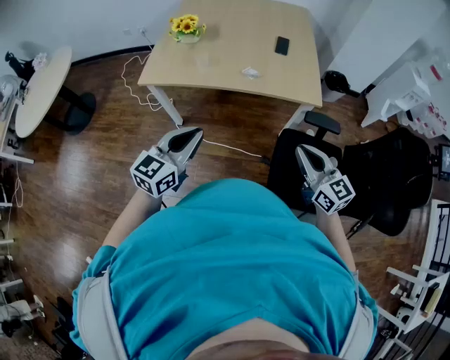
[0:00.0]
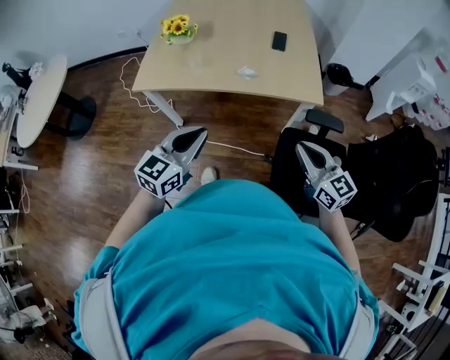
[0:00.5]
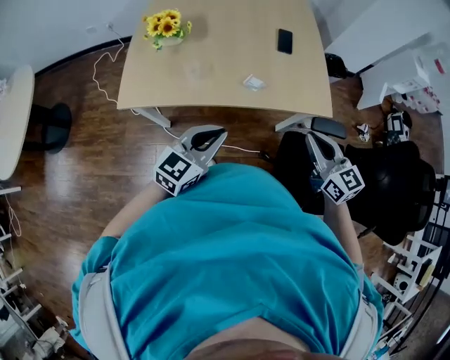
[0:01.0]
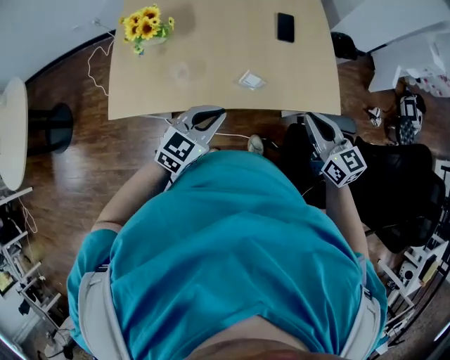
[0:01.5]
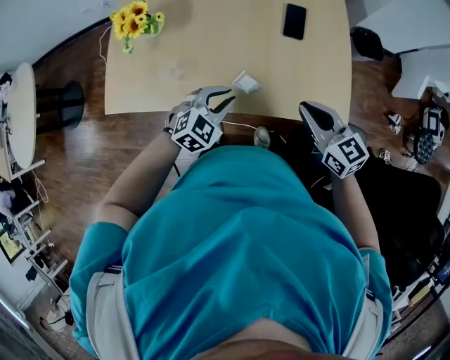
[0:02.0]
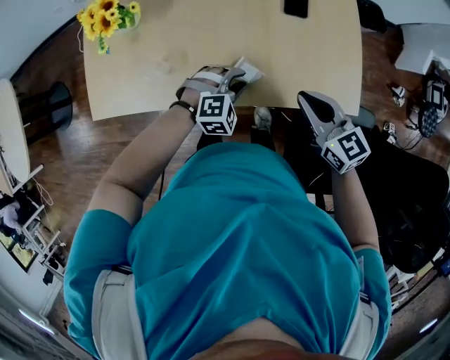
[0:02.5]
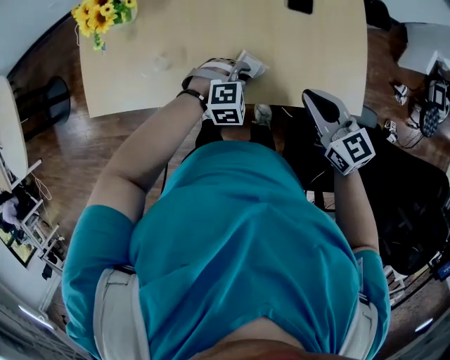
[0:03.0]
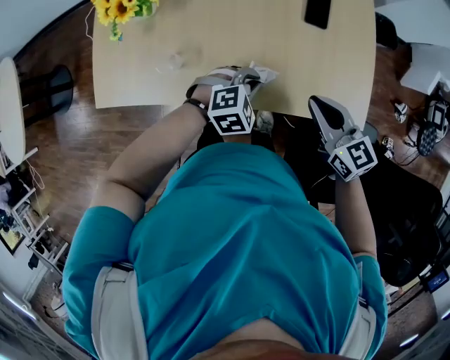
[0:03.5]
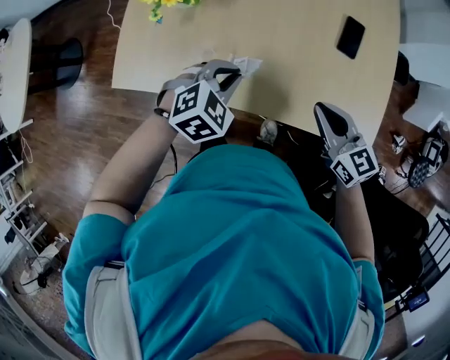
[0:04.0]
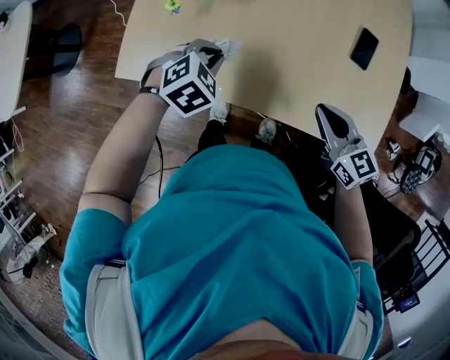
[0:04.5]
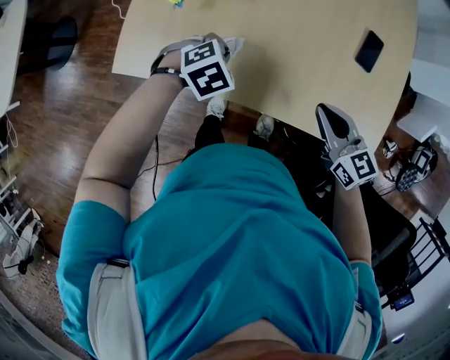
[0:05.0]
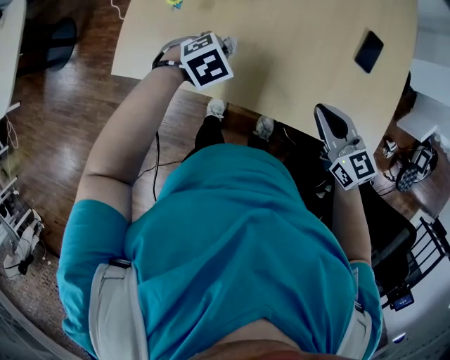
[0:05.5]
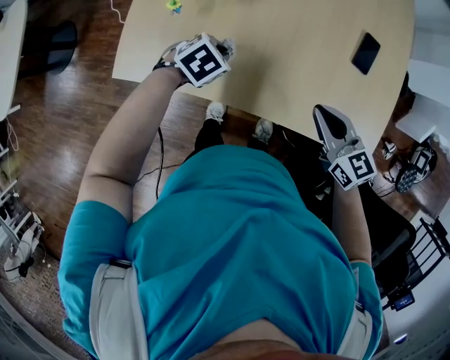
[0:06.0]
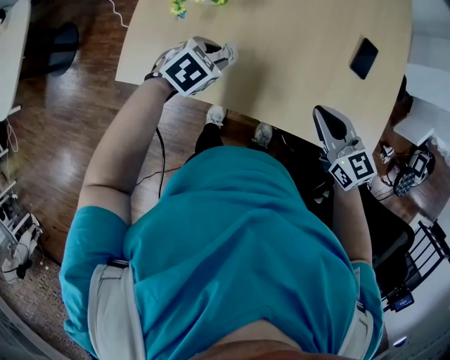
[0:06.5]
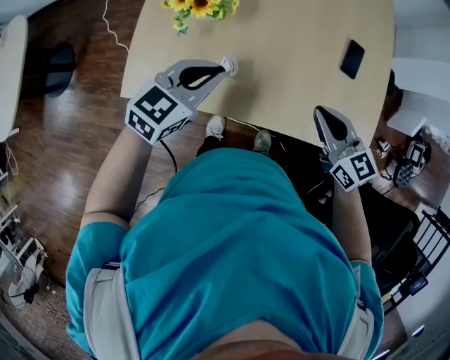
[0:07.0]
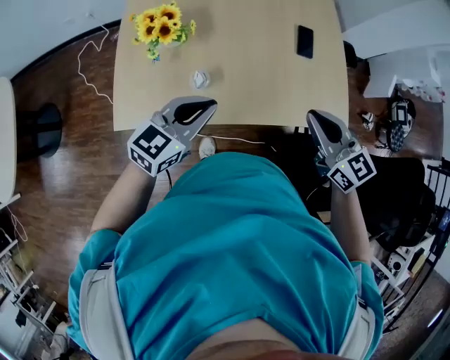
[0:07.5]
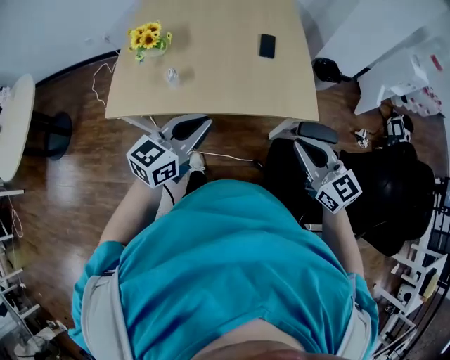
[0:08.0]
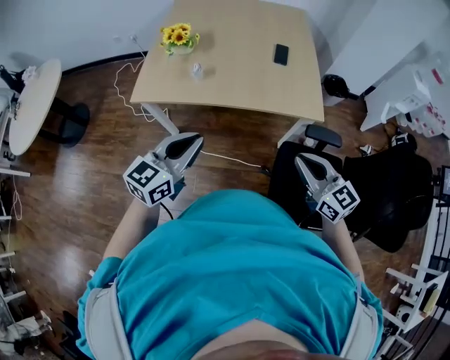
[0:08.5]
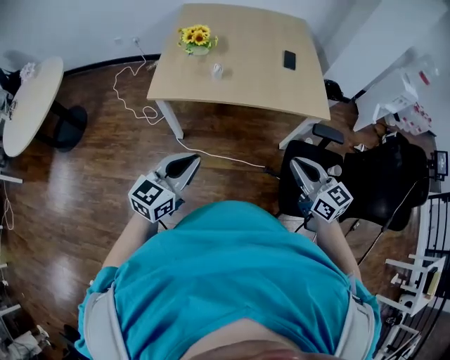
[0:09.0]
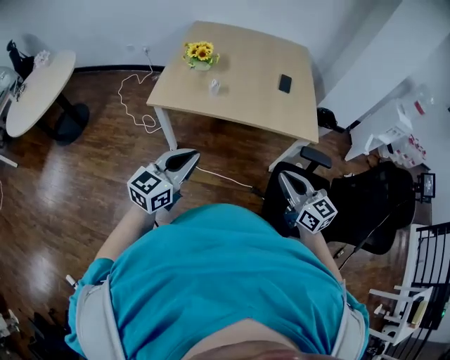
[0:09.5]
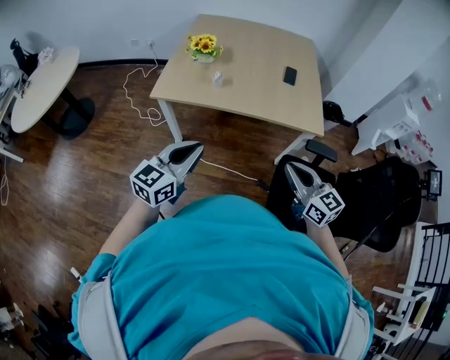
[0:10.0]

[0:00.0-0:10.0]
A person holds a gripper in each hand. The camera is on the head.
0:00.0 to 0:02.0: The right gripper shifts about 40 cm forward. The left gripper travels forward and downward by approximately 50 cm, and points its fingers approximately 30 degrees further downward.
0:02.0 to 0:04.0: The left gripper travels to the left and forward by some 10 cm, and reaches about 15 cm downward, then returns; the right gripper goes roughly 10 cm to the left.
0:04.0 to 0:06.0: The left gripper travels to the left, downward and forward by roughly 15 cm, and changes its angle by roughly 30 degrees. The right gripper travels to the left by some 5 cm.
0:06.0 to 0:08.0: The right gripper travels backward, to the right and upward by about 35 cm, and rotates approximately 20 degrees. Meanwhile the left gripper shifts approximately 40 cm upward, backward and to the right, and tips its fingers upward by about 60 degrees.
0:08.0 to 0:10.0: Both grippers travel together backward and to the left, approximately 25 cm.

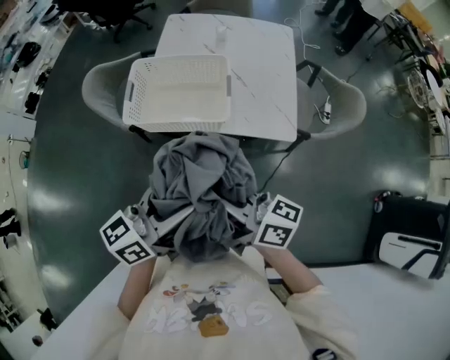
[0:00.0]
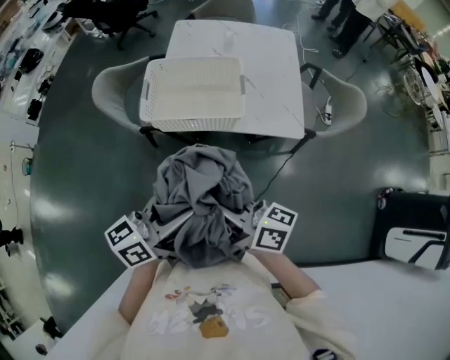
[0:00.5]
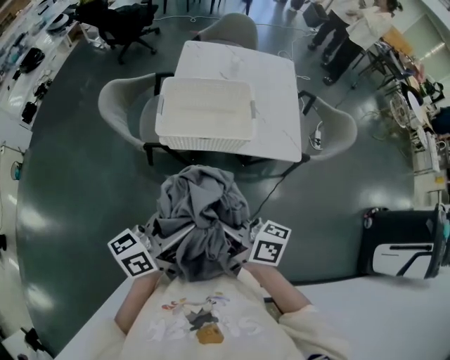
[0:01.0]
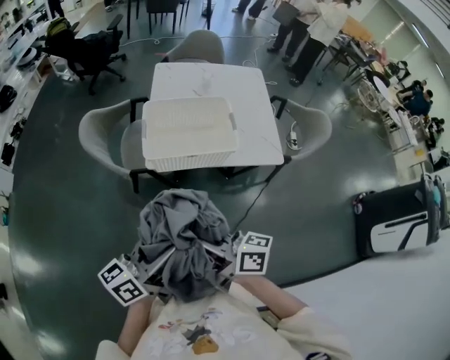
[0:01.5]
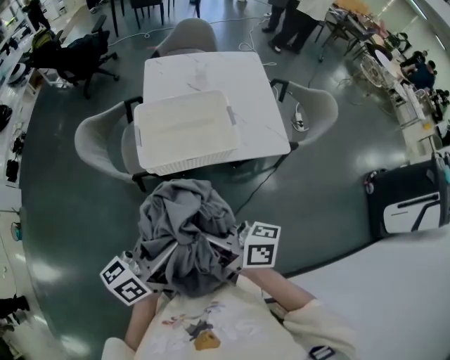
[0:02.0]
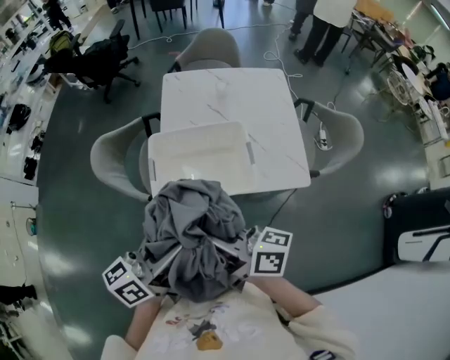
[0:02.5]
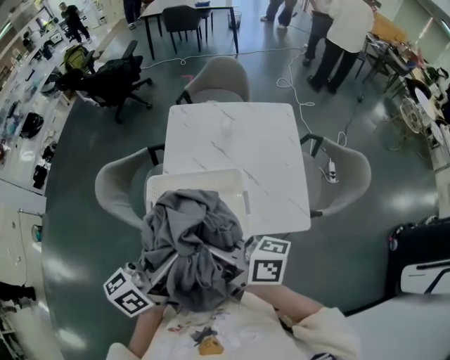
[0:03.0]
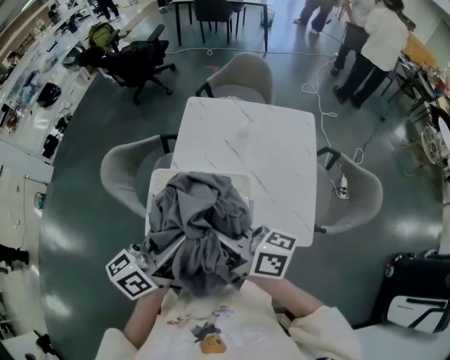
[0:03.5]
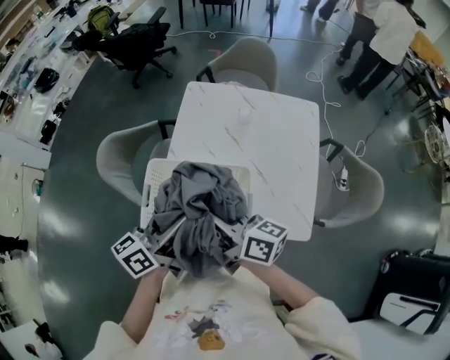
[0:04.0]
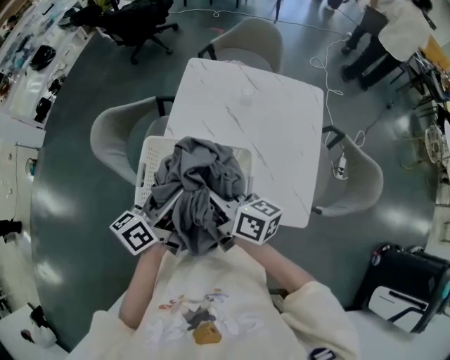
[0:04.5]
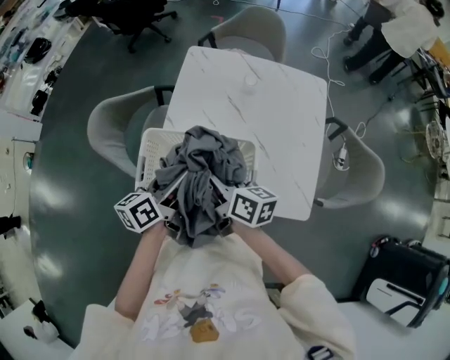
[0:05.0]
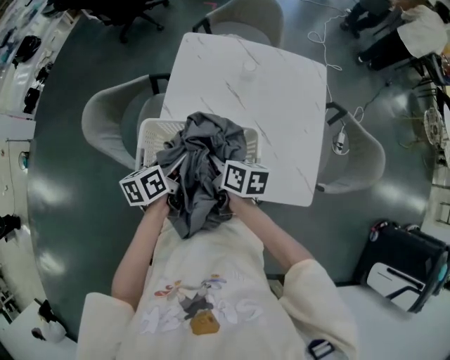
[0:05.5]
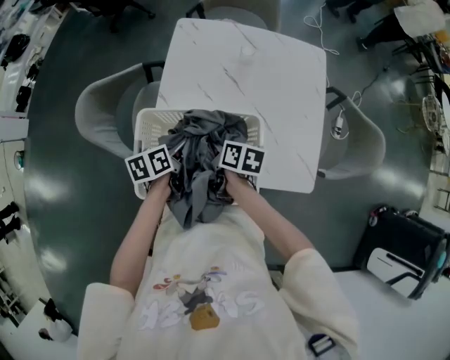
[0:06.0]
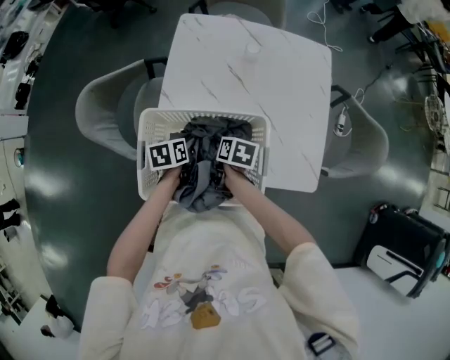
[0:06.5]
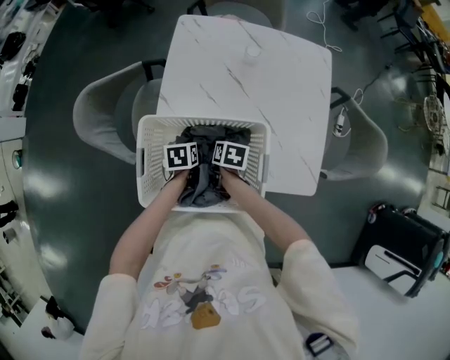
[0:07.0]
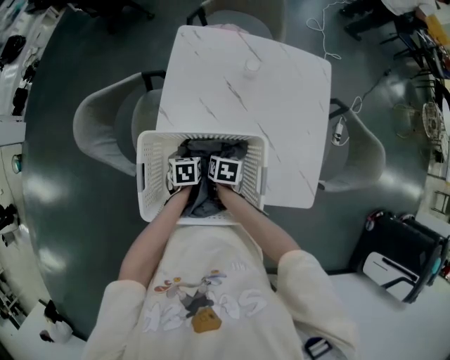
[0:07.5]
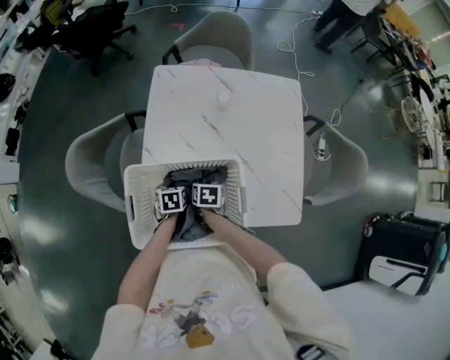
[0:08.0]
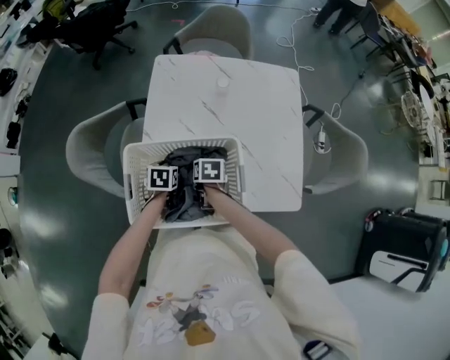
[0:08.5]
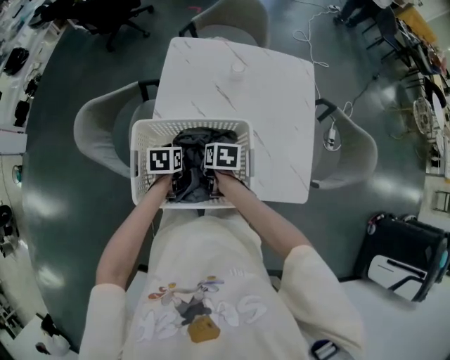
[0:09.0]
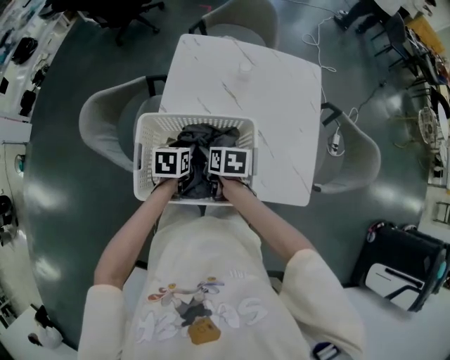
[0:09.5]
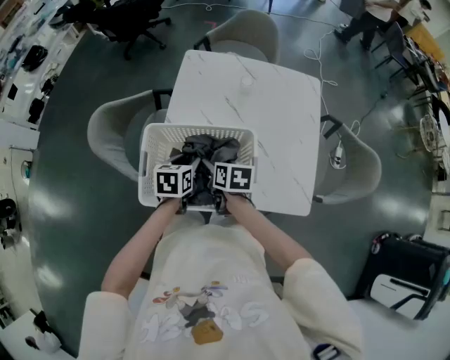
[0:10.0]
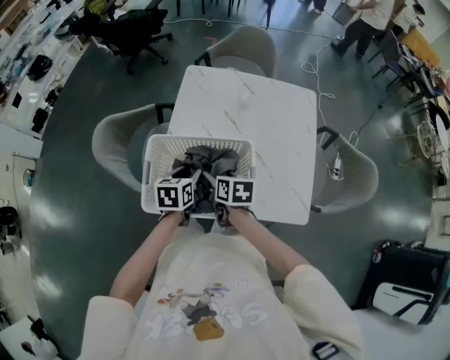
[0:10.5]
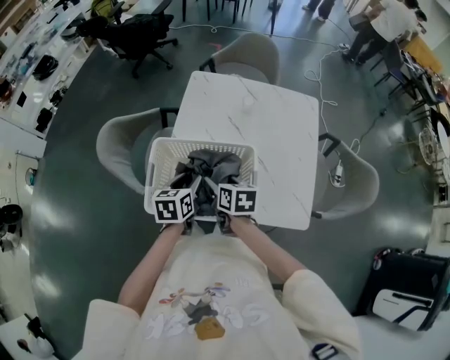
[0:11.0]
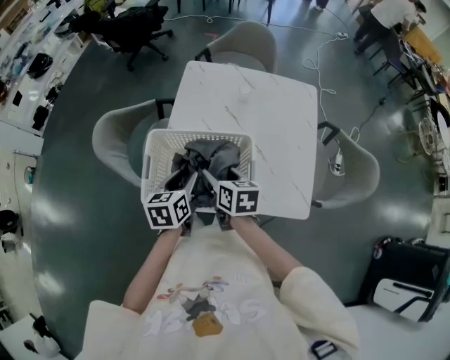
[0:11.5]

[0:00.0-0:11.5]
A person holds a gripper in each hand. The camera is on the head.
0:00.0 to 0:02.0: The grippers both shift to the left by about 20 cm.
0:02.0 to 0:04.0: Both grippers travel together forward and to the right, some 35 cm.
0:04.0 to 0:06.0: The grippers both shift downward by approximately 25 cm. The left gripper points its fingers about 40 degrees further downward, while the right gripper angles its fingers downward, by some 40 degrees.
0:06.0 to 0:07.5: Both grippers travel together downward, roughly 15 cm. The right gripper swivels about 30 degrees. The left gripper changes its angle by approximately 40 degrees, and closes.
0:07.5 to 0:09.5: The two grippers go some 10 cm upward.
0:09.5 to 0:11.5: The grippers both shift upward and backward by about 10 cm. The left gripper turns by approximately 20 degrees.

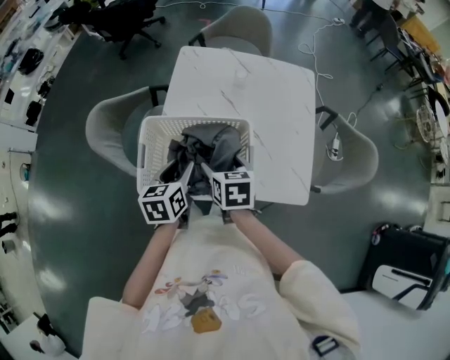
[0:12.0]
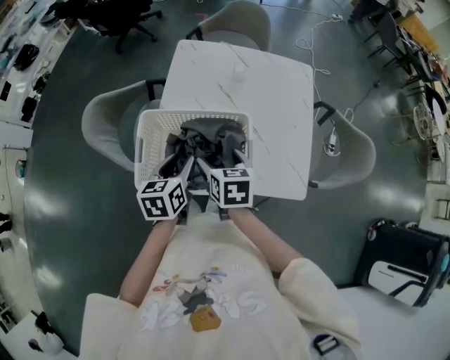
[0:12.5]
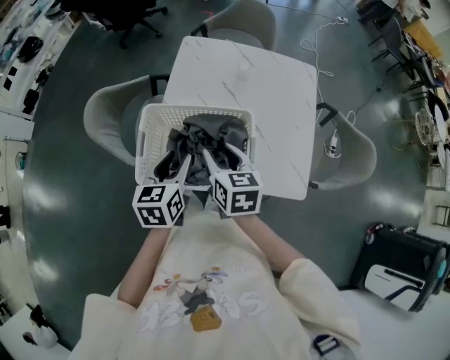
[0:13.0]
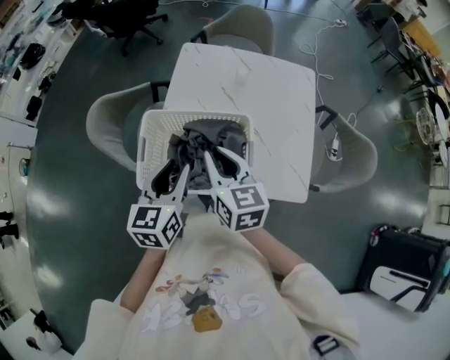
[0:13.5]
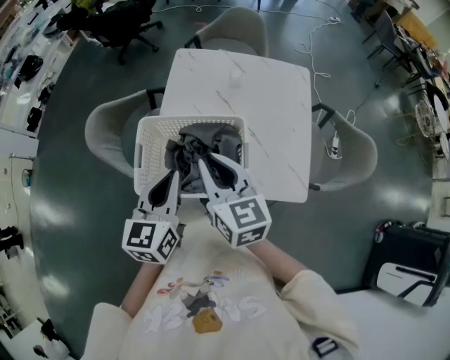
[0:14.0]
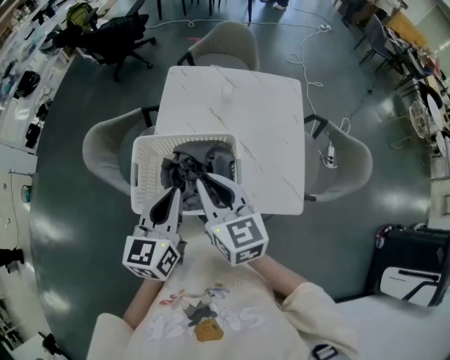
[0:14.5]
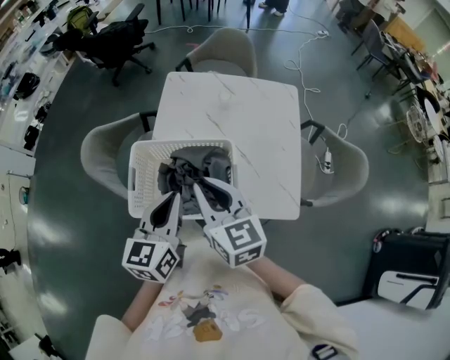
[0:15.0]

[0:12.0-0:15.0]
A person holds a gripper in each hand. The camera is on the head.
0:12.0 to 0:13.5: Both grippers move upward, some 10 cm. The right gripper changes its angle by some 30 degrees, and closes its fingers.
0:13.5 to 0:15.0: The left gripper moves roughly 5 cm, and closes its fingers. Meanwhile the right gripper travels upward by roughly 5 cm.

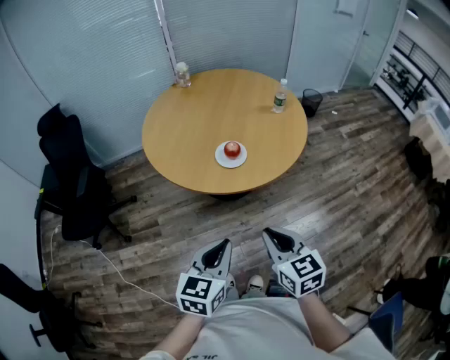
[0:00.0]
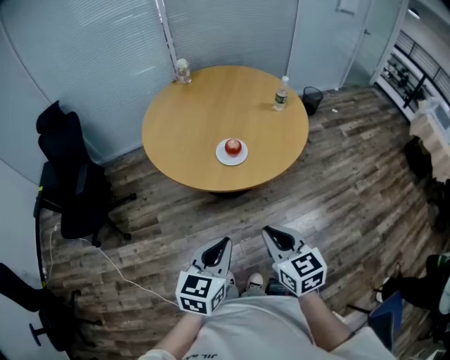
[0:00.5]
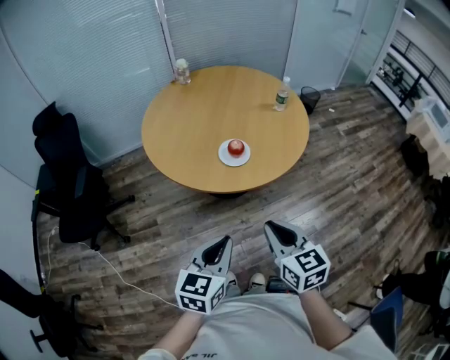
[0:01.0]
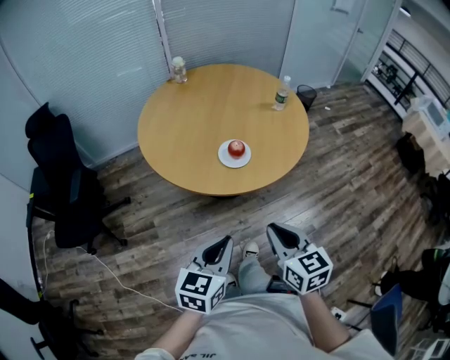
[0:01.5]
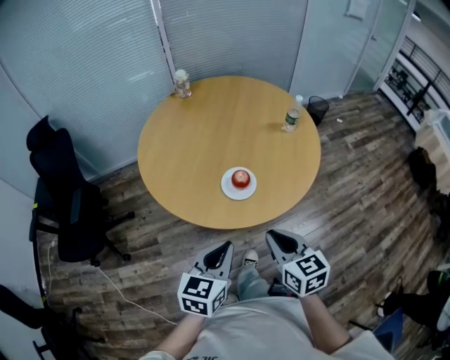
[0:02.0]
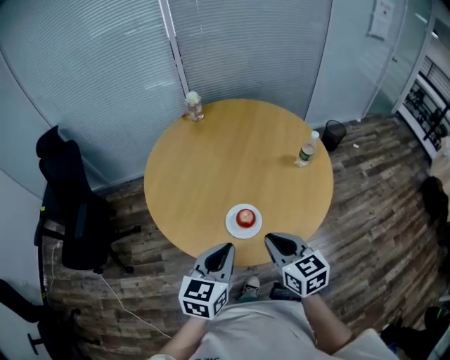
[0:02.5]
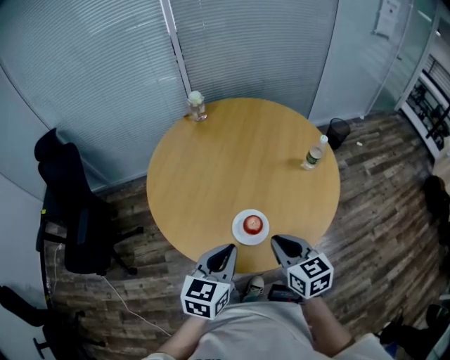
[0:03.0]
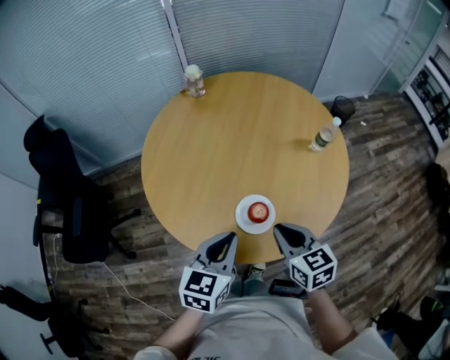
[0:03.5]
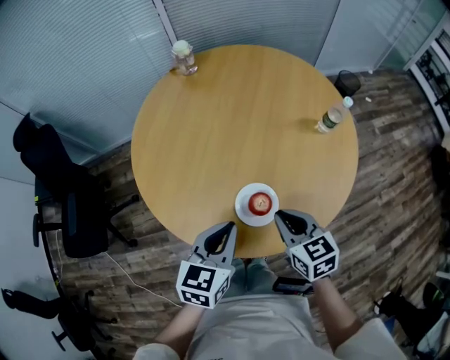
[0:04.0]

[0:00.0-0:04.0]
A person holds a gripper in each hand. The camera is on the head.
0:00.0 to 0:02.0: Both grippers move forward, roughly 15 cm.
0:02.0 to 0:04.0: The two grippers go some 20 cm forward.
